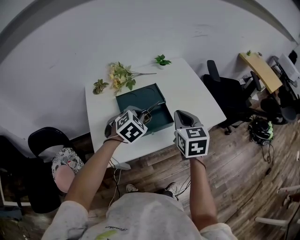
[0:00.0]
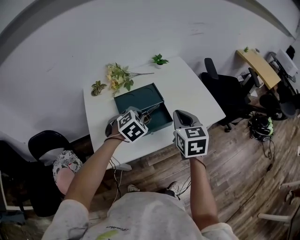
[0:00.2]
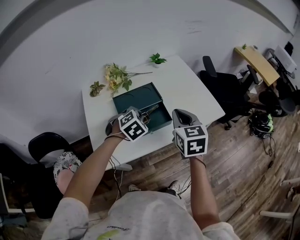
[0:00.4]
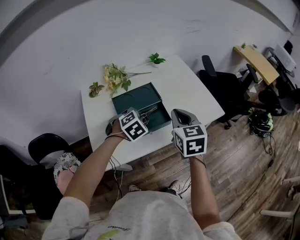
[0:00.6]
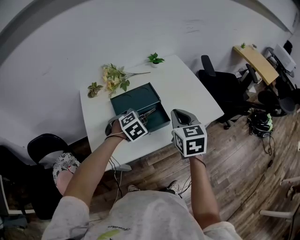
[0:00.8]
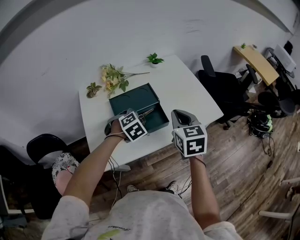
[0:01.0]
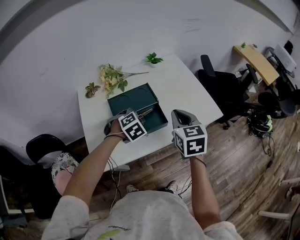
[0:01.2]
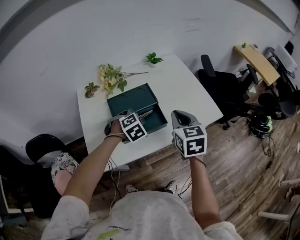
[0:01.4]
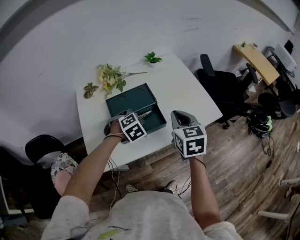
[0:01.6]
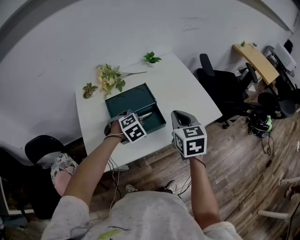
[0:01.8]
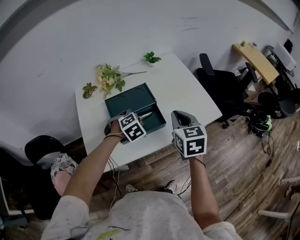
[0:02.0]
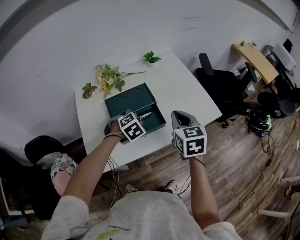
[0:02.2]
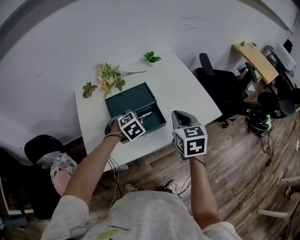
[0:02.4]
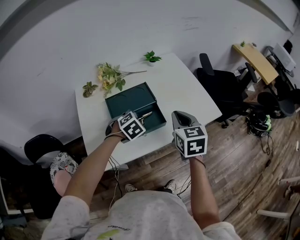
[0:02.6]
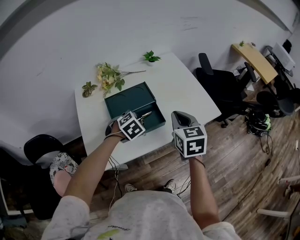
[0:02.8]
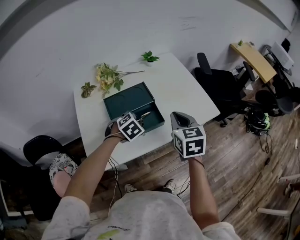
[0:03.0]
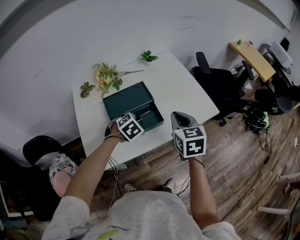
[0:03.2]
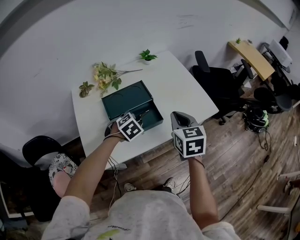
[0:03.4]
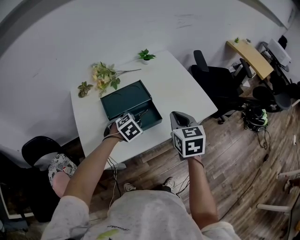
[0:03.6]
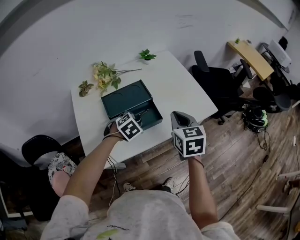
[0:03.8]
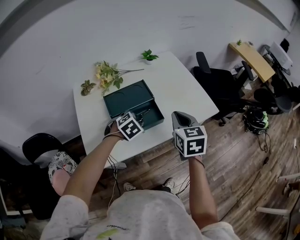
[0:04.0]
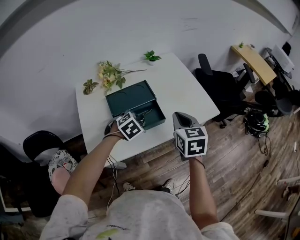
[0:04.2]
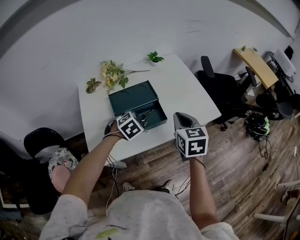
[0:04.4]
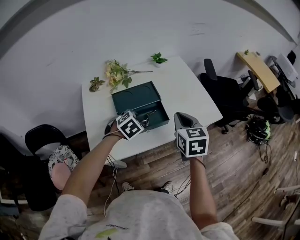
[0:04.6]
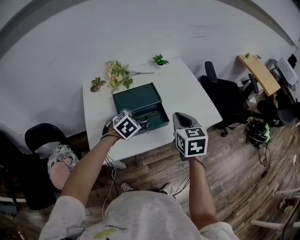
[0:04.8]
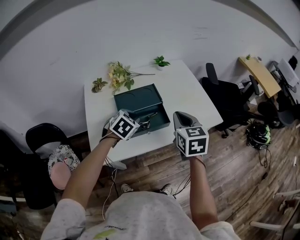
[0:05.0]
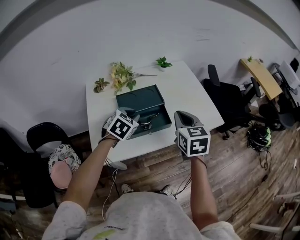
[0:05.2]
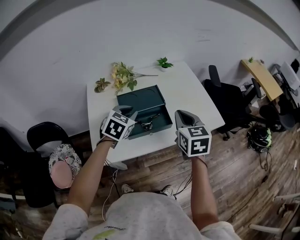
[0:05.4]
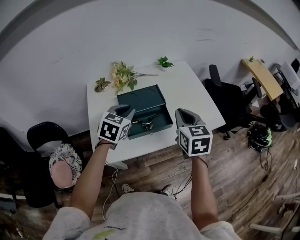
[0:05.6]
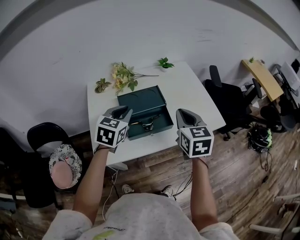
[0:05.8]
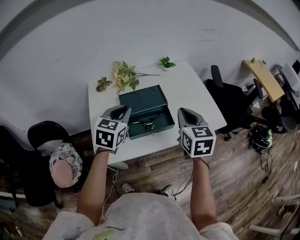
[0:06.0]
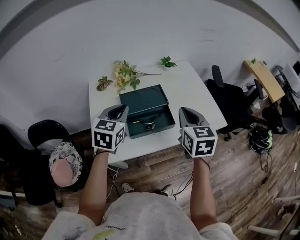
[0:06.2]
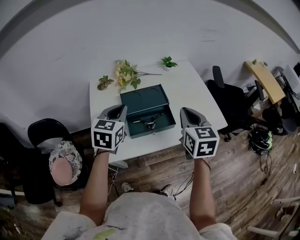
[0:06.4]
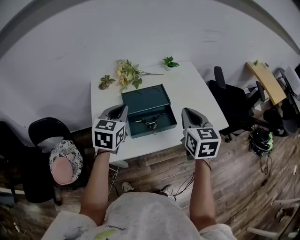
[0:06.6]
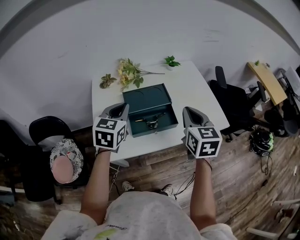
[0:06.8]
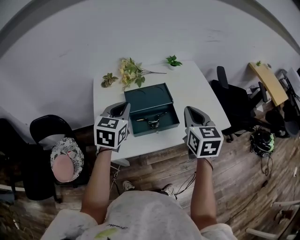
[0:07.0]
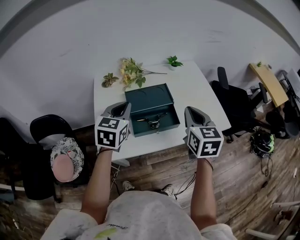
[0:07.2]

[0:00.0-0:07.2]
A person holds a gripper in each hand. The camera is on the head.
0:00.0 to 0:01.4: The left gripper goes some 5 cm downward.
0:01.4 to 0:04.4: There are only small adjustments of the grippers.
0:04.4 to 0:05.8: The left gripper is displaced upward and to the left by roughly 15 cm, and swivels roughly 40 degrees; the right gripper moves some 5 cm.
0:05.8 to 0:07.2: There are only small adjustments of the grippers.

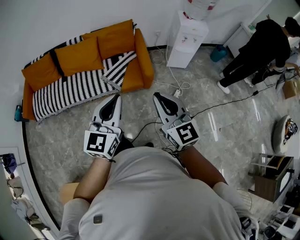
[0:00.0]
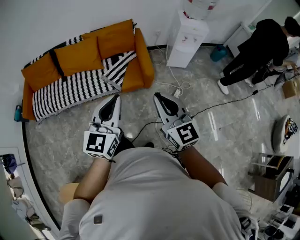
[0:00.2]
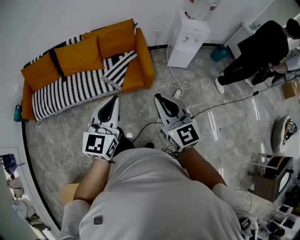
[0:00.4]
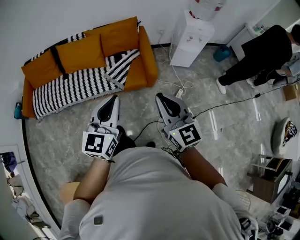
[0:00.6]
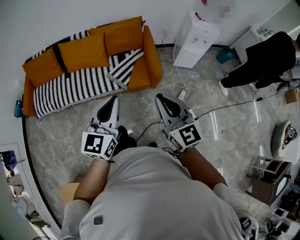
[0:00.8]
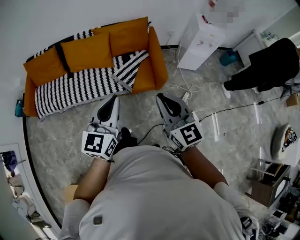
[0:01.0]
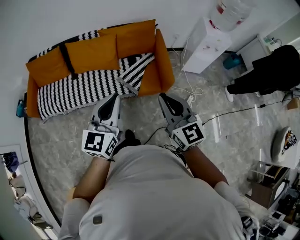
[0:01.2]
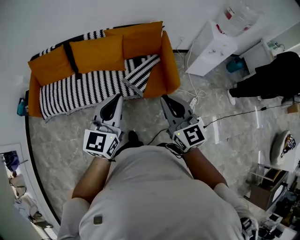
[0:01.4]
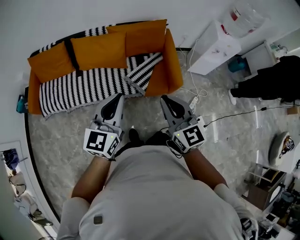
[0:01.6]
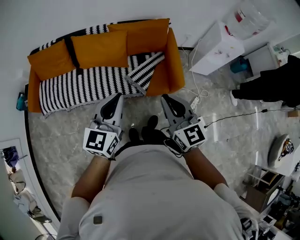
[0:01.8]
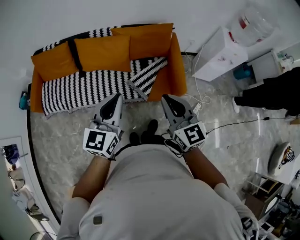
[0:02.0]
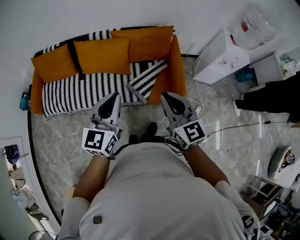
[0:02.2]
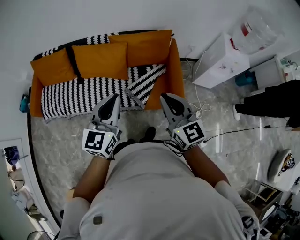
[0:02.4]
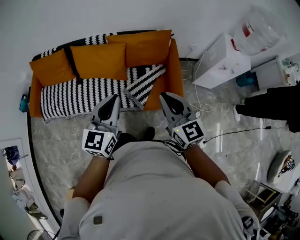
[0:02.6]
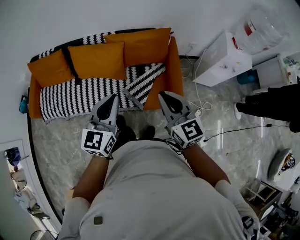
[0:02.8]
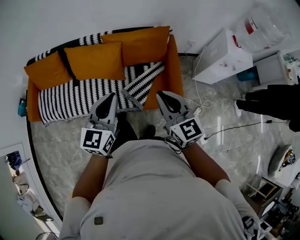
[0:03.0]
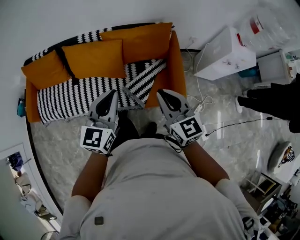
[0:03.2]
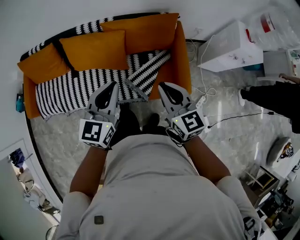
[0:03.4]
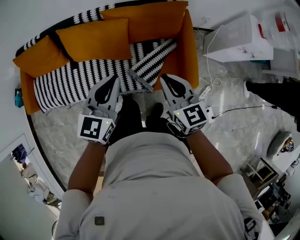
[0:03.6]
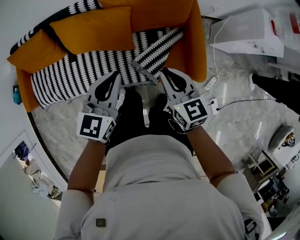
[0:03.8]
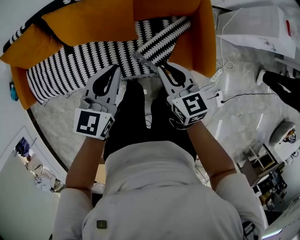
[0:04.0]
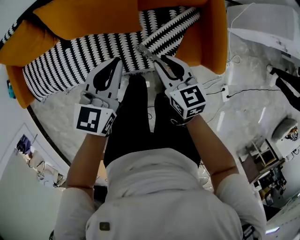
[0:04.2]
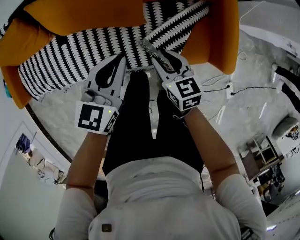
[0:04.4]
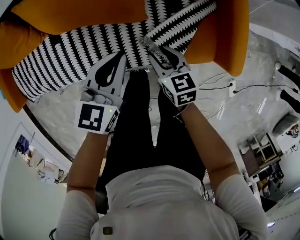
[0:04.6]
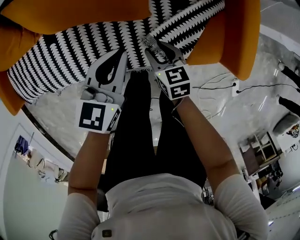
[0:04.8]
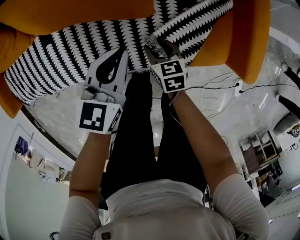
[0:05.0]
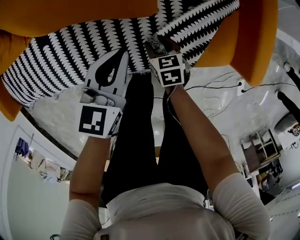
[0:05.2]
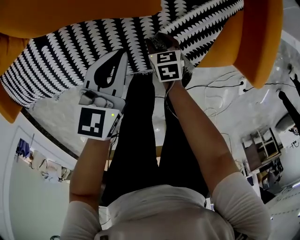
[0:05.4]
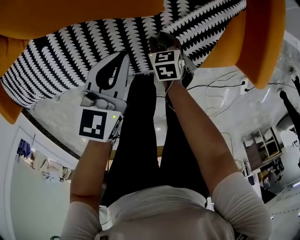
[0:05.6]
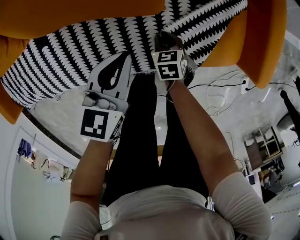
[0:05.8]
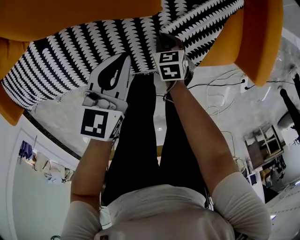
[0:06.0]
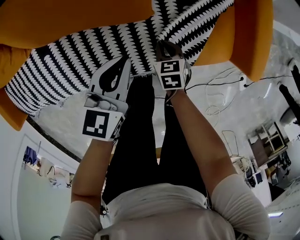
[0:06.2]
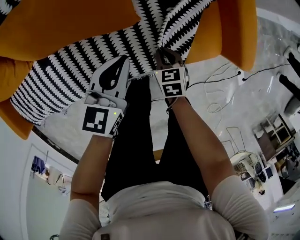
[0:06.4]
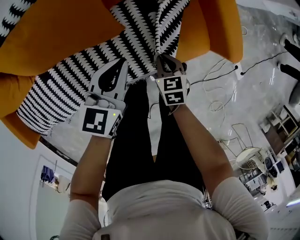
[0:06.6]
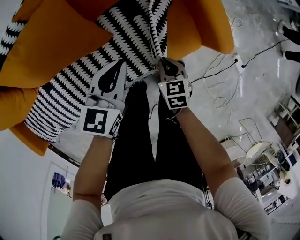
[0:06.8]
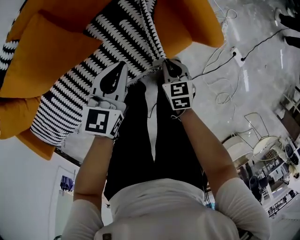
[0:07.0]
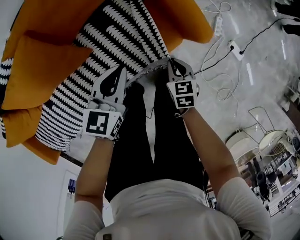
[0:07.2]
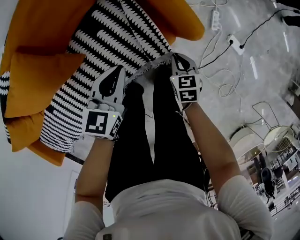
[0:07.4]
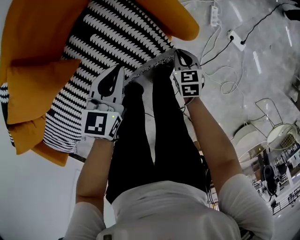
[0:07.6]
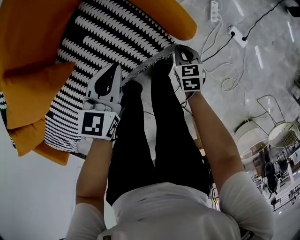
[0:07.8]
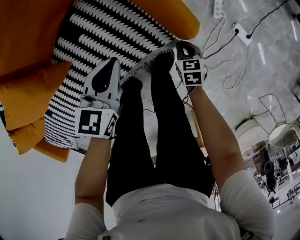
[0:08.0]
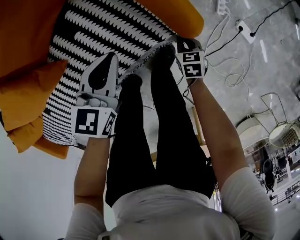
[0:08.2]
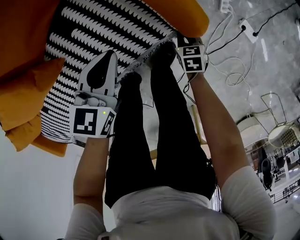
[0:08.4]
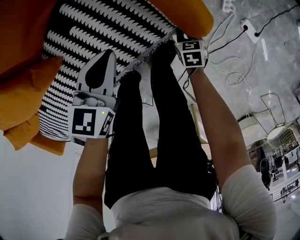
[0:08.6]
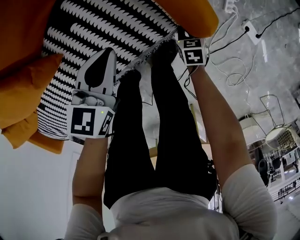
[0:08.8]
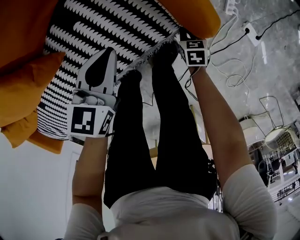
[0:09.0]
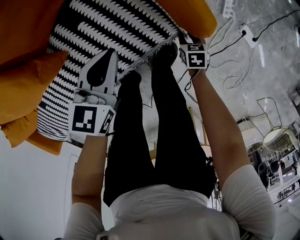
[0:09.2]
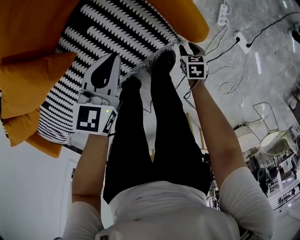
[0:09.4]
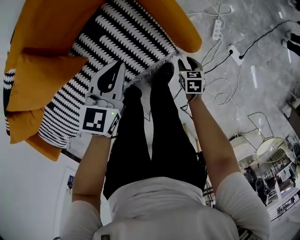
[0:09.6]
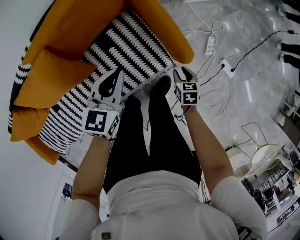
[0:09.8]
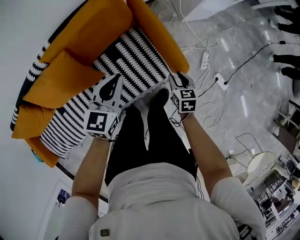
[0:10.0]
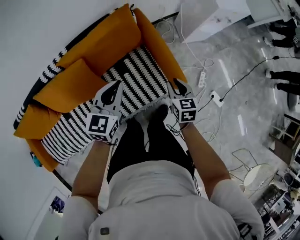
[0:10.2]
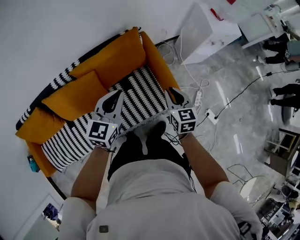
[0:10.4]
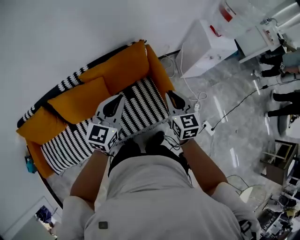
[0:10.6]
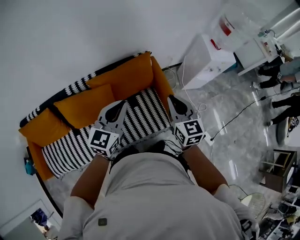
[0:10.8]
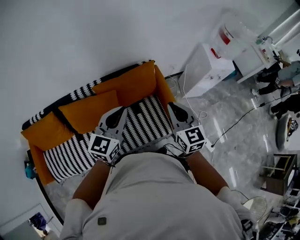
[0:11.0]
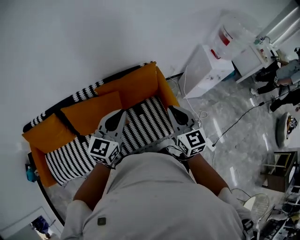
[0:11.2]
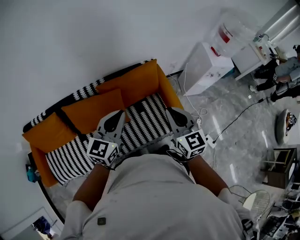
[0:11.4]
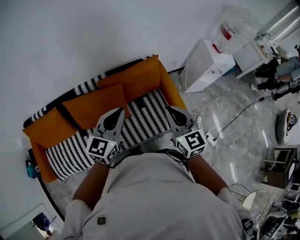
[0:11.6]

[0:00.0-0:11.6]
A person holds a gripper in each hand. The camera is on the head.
0:00.0 to 0:01.4: Both grippers move to the left and forward, some 25 cm.
0:01.4 to 0:02.8: The two grippers go approximately 20 cm forward.
0:02.8 to 0:04.4: The left gripper shifts approximately 40 cm downward and forward, and swivels about 20 degrees; the right gripper travels downward, forward and to the left by about 50 cm, changes its angle by roughly 40 degrees, and opens up.
0:04.4 to 0:05.8: The right gripper travels downward by about 35 cm, and rotates approximately 30 degrees. The left gripper moves downward, some 20 cm.
0:05.8 to 0:07.2: The left gripper moves roughly 25 cm, and rotates approximately 30 degrees. Meanwhile the right gripper shifts by approximately 30 cm, and changes its angle by about 30 degrees.
0:07.2 to 0:08.8: The right gripper goes up and down, roughly 20 cm each way, reversing 2 times. The left gripper swings up and down, about 10 cm each way, with 2 reversals.
0:08.8 to 0:10.2: The grippers both shift upward by about 50 cm. The right gripper changes its angle by some 30 degrees. The left gripper rotates some 20 degrees.
0:10.2 to 0:11.6: The right gripper shifts roughly 40 cm upward and to the left, changes its angle by about 40 degrees, and closes its fingers. Meanwhile the left gripper is displaced upward, to the left and backward by about 35 cm.

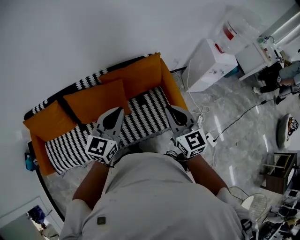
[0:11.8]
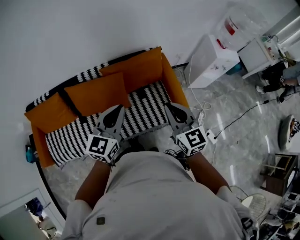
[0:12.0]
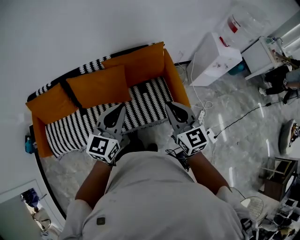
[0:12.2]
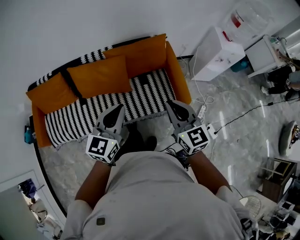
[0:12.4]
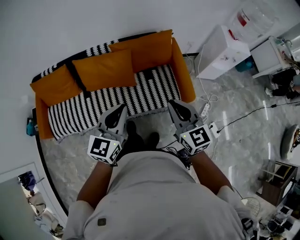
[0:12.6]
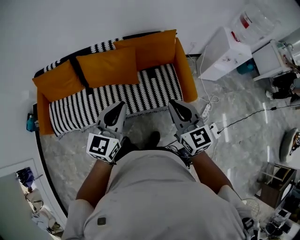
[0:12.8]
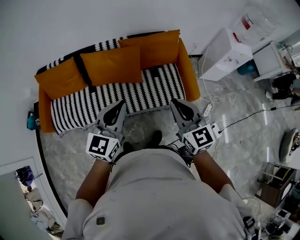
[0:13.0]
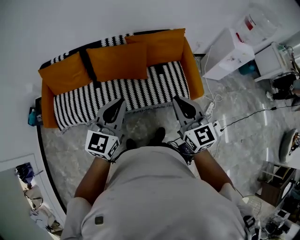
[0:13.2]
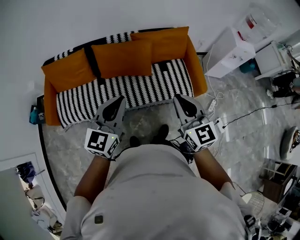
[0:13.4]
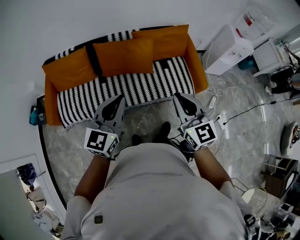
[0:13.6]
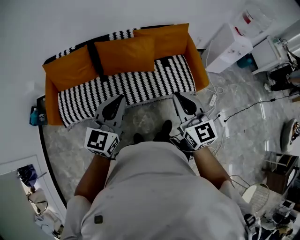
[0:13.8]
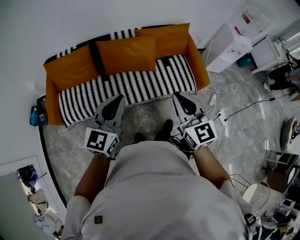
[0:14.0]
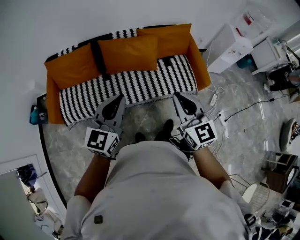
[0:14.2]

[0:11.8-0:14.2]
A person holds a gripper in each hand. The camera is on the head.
0:11.8 to 0:13.0: The two grippers go some 20 cm backward.
0:13.0 to 0:14.2: The two grippers go some 25 cm to the left and backward.

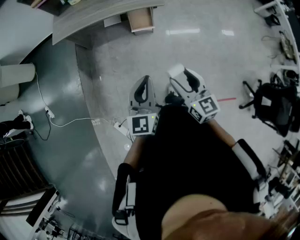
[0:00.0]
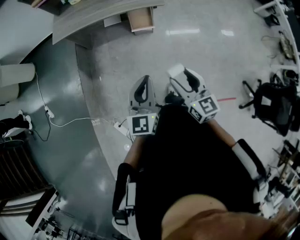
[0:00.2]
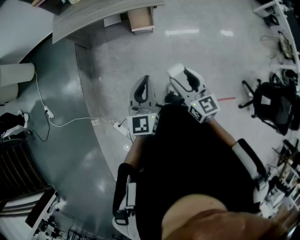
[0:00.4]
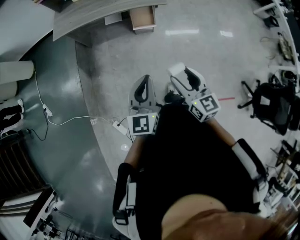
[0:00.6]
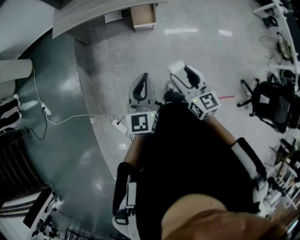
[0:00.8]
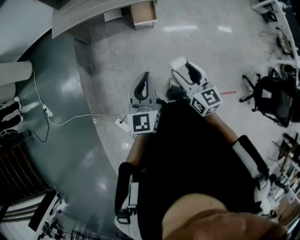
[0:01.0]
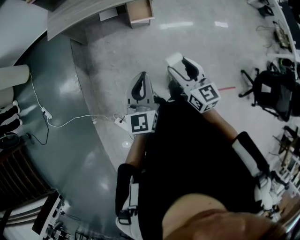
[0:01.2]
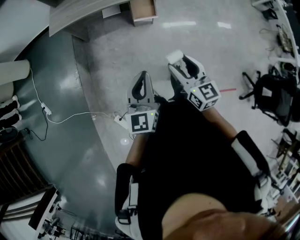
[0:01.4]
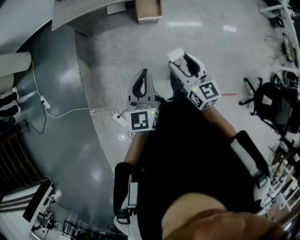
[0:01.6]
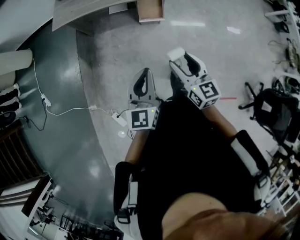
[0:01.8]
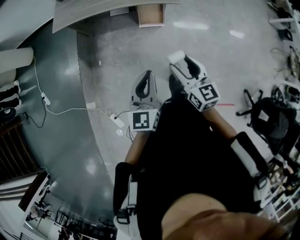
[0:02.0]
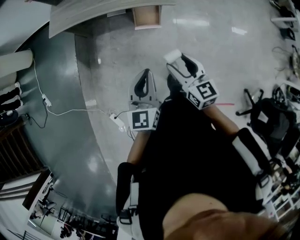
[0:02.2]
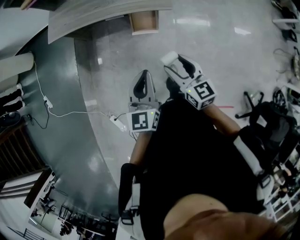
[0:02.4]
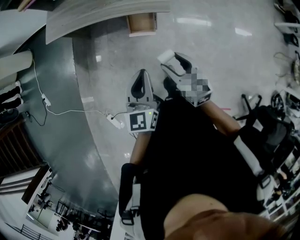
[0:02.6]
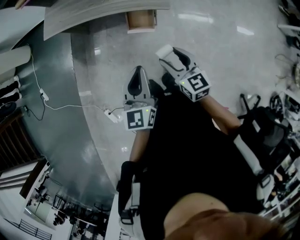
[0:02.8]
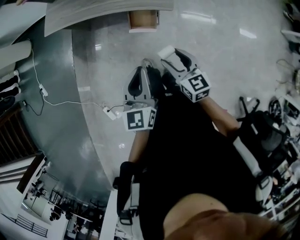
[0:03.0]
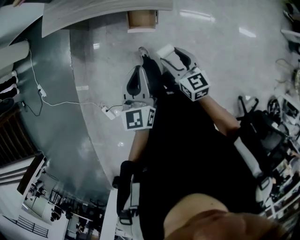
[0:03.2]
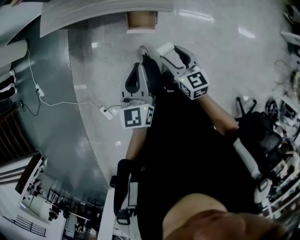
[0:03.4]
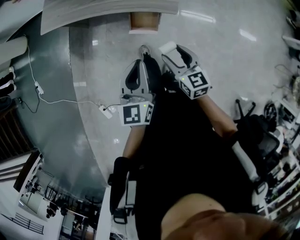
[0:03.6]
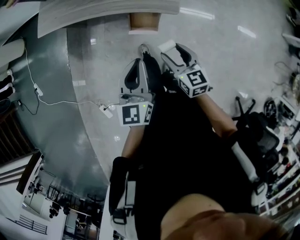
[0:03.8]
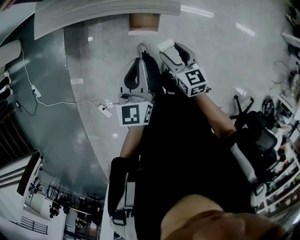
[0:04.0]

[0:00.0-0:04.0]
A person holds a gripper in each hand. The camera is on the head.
0:00.0 to 0:01.4: The two grippers go about 5 cm to the left.
0:01.4 to 0:02.6: The grippers both shift forward and to the right by about 30 cm.
0:02.6 to 0:04.0: The right gripper travels forward and downward by approximately 15 cm; the left gripper is displaced forward by approximately 15 cm.
